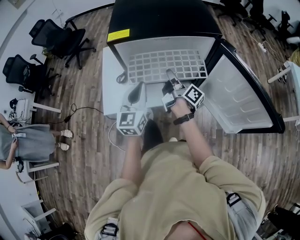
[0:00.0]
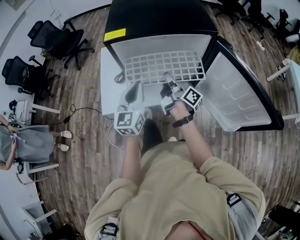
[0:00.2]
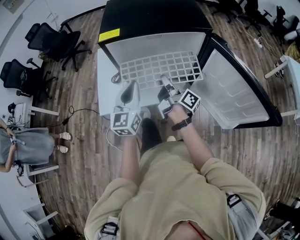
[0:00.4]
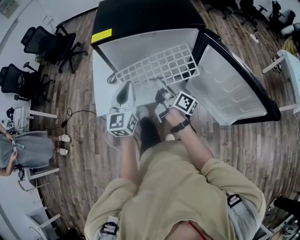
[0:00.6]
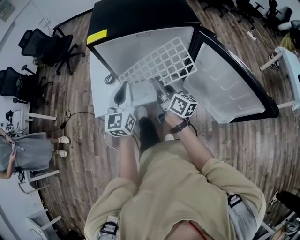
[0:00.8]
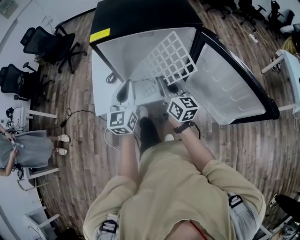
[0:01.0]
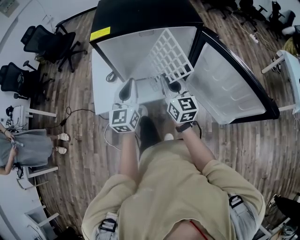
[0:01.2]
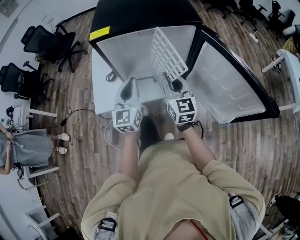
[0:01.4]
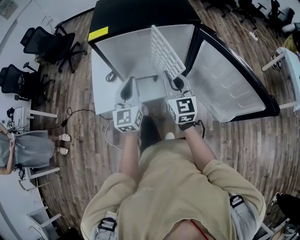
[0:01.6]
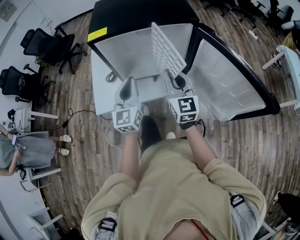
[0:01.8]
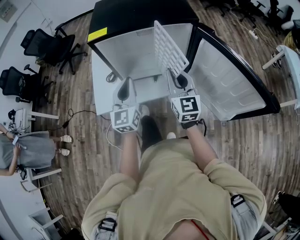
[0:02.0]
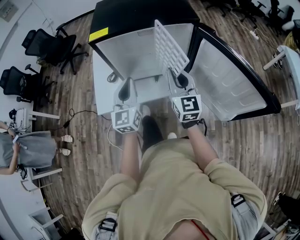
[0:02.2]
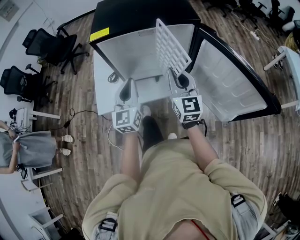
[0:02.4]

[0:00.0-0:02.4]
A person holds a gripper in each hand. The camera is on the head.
0:00.0 to 0:01.2: The right gripper shifts roughly 10 cm backward, and rotates around the line of its fingers by approximately 70 degrees, counterclockwise from behind.
0:01.2 to 0:02.4: The right gripper ends up about 5 cm from where it was.

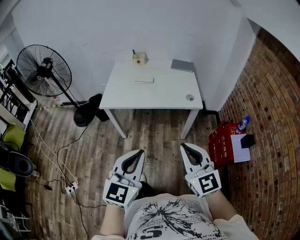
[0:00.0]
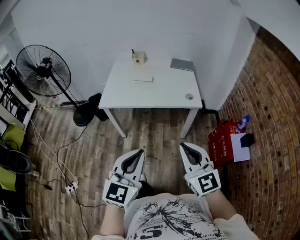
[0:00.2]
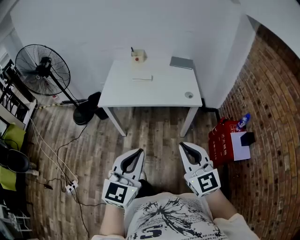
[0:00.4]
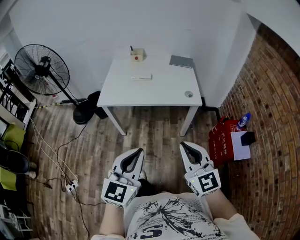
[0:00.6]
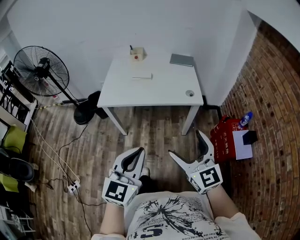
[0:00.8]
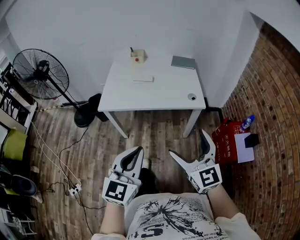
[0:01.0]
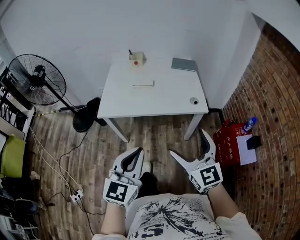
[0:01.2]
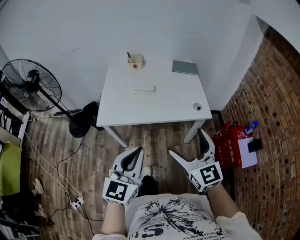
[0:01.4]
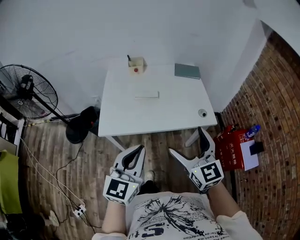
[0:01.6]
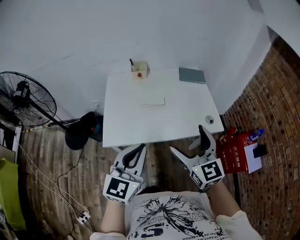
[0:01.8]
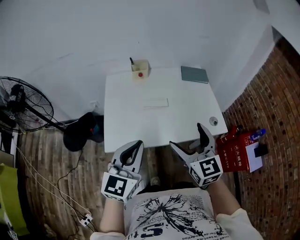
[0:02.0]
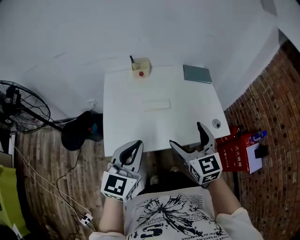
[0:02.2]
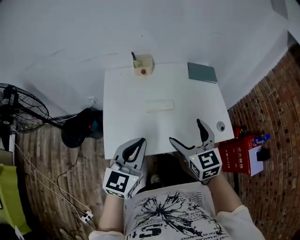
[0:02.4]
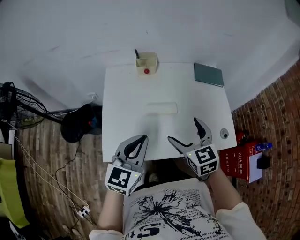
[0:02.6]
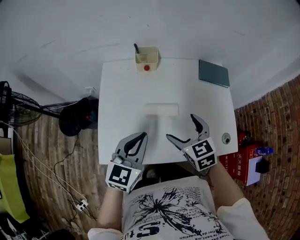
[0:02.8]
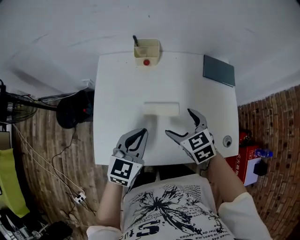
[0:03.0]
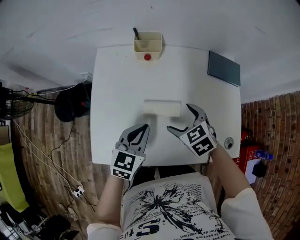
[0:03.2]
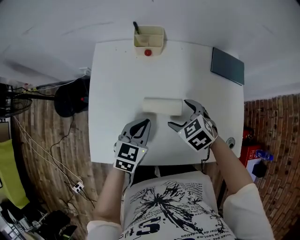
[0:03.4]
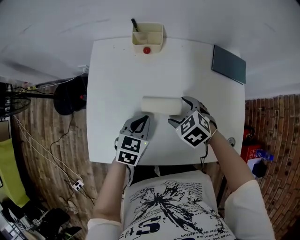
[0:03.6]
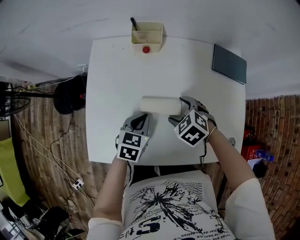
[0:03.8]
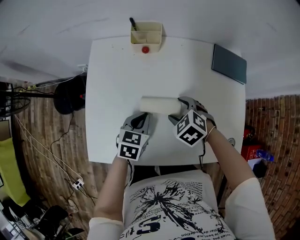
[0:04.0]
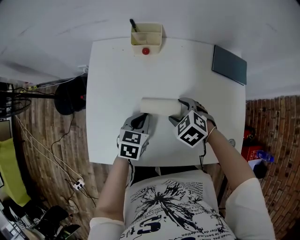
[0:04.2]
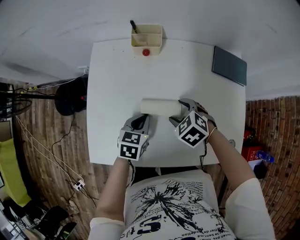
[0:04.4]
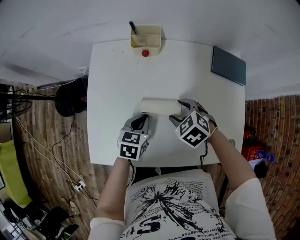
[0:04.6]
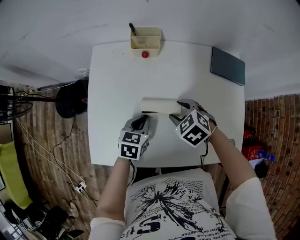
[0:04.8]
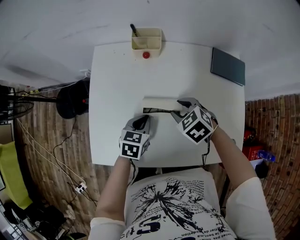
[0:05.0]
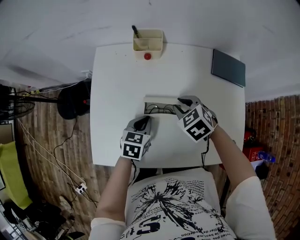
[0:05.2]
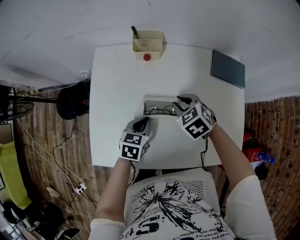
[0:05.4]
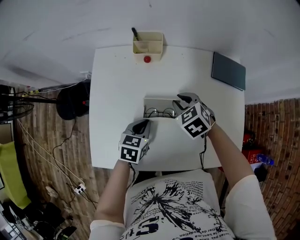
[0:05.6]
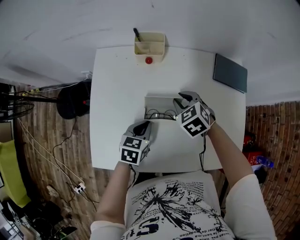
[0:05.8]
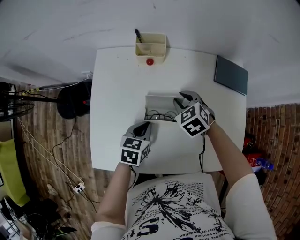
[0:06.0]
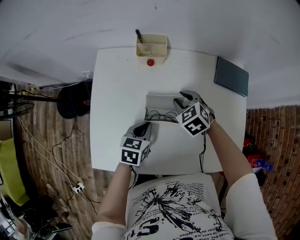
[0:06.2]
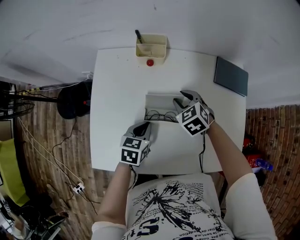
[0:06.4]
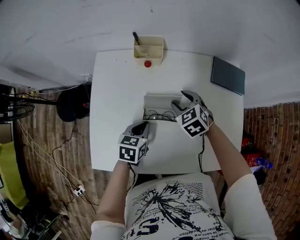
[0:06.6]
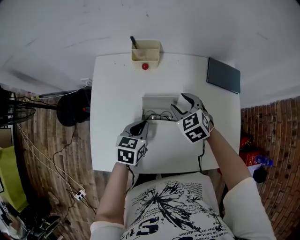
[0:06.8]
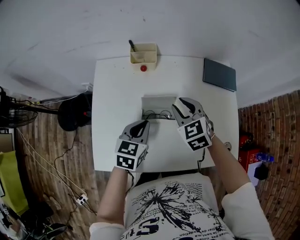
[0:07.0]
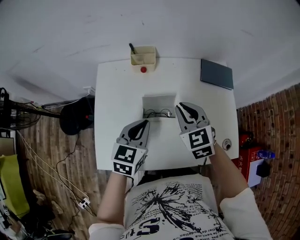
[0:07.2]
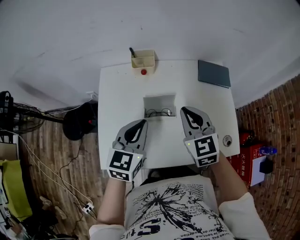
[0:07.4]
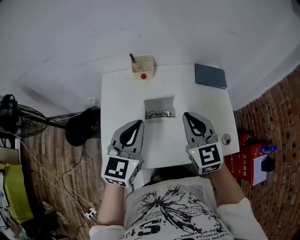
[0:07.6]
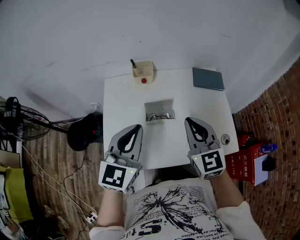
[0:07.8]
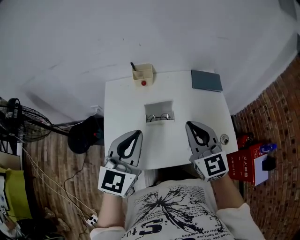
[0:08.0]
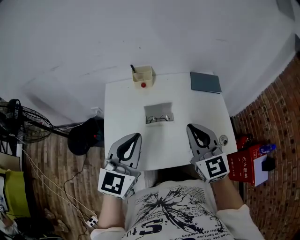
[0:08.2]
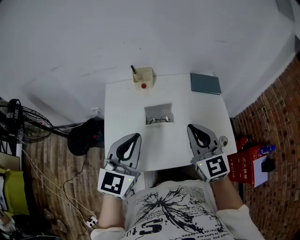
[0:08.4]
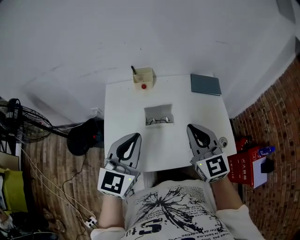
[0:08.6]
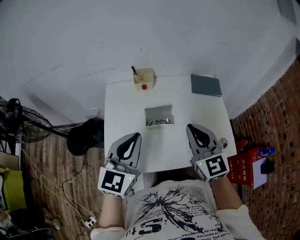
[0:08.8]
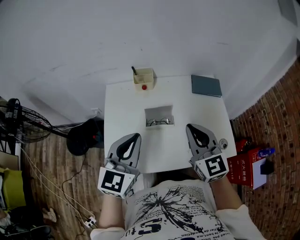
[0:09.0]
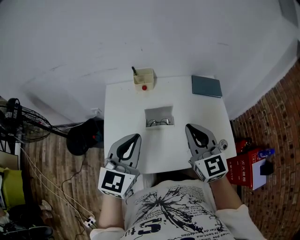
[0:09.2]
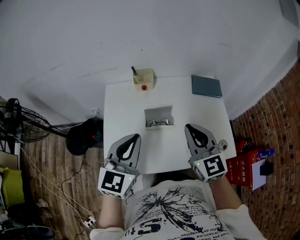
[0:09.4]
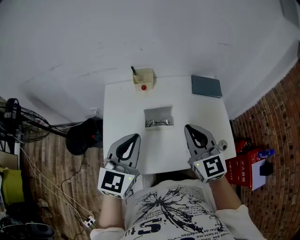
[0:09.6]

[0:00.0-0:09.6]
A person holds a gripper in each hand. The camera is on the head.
0:00.0 to 0:01.6: The left gripper moves forward and to the left, roughly 30 cm. The right gripper is displaced forward by roughly 25 cm, and opens its fingers.
0:01.6 to 0:03.2: Both grippers are carried forward, approximately 40 cm. The grippers both shift downward by roughly 25 cm. The left gripper turns by roughly 20 degrees. Meanwhile the right gripper points its fingers approximately 50 degrees further downward.
0:03.2 to 0:04.8: The right gripper changes place by roughly 5 cm, and closes its fingers, while the left gripper moves downward, about 10 cm.
0:04.8 to 0:06.4: The right gripper is displaced forward by approximately 10 cm.
0:06.4 to 0:08.0: The grippers both shift upward and backward by about 35 cm. The right gripper points its fingers roughly 40 degrees further upward; the left gripper angles its fingers upward, by about 40 degrees.
0:08.0 to 0:09.6: The grippers stay close to where they were, moving slightly.

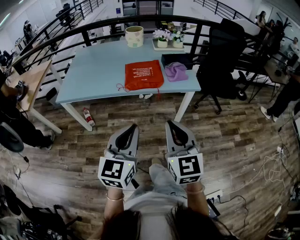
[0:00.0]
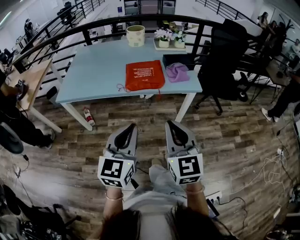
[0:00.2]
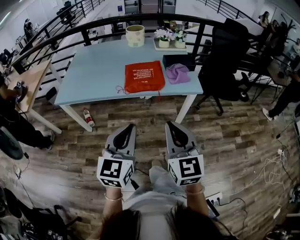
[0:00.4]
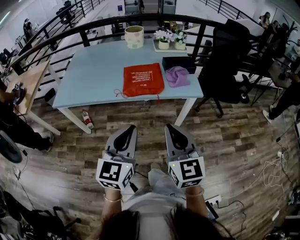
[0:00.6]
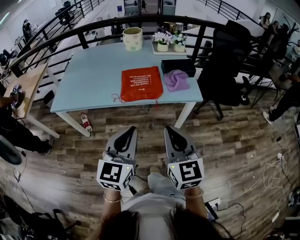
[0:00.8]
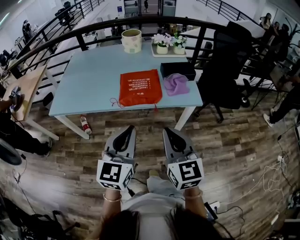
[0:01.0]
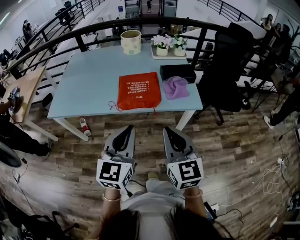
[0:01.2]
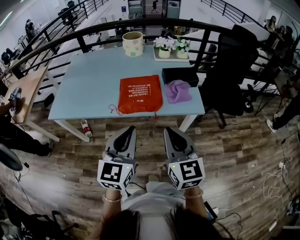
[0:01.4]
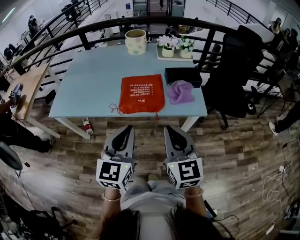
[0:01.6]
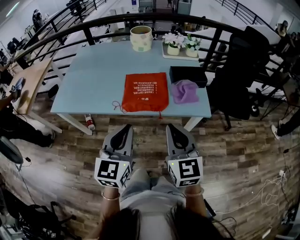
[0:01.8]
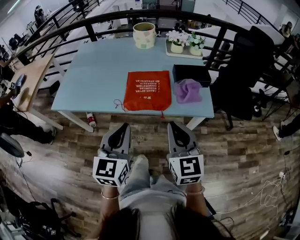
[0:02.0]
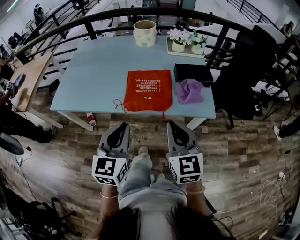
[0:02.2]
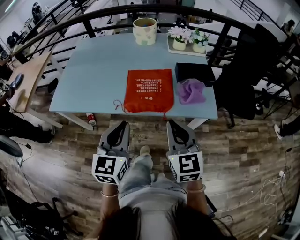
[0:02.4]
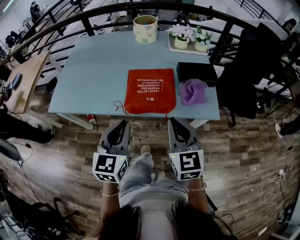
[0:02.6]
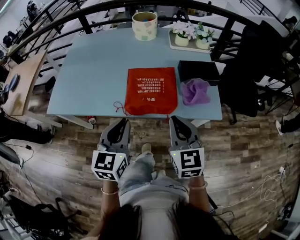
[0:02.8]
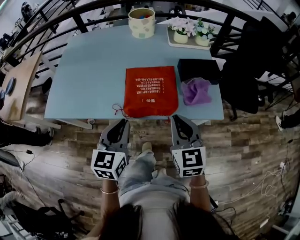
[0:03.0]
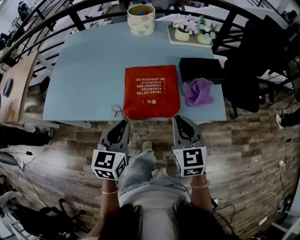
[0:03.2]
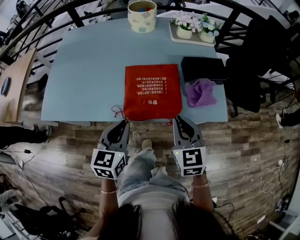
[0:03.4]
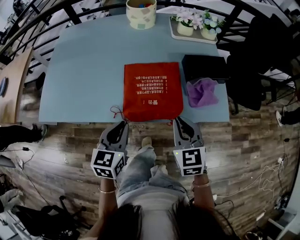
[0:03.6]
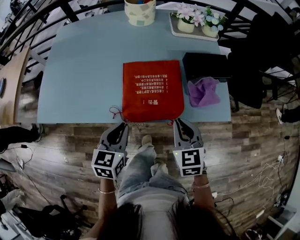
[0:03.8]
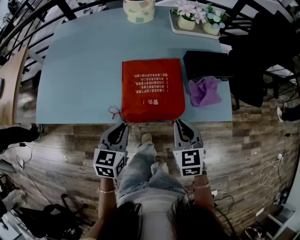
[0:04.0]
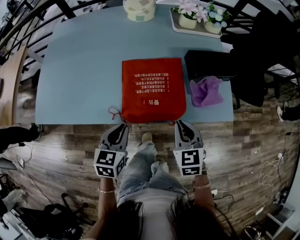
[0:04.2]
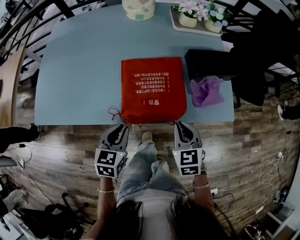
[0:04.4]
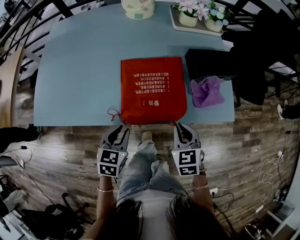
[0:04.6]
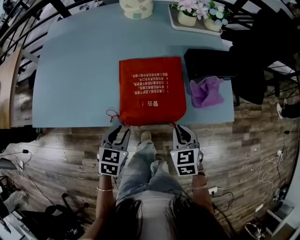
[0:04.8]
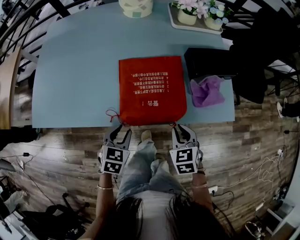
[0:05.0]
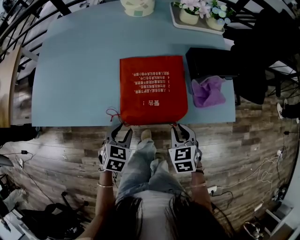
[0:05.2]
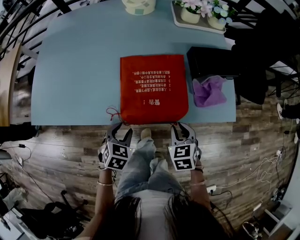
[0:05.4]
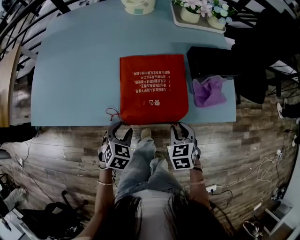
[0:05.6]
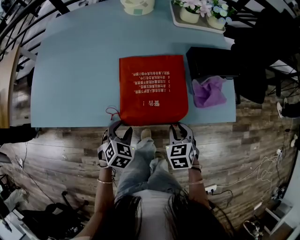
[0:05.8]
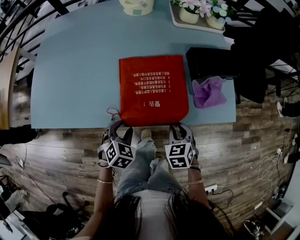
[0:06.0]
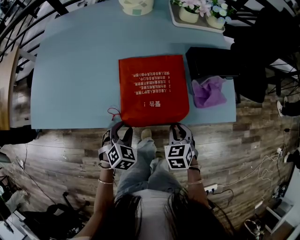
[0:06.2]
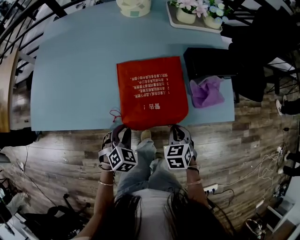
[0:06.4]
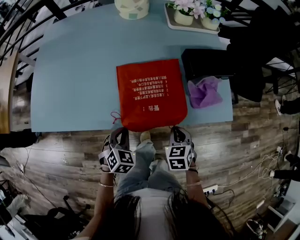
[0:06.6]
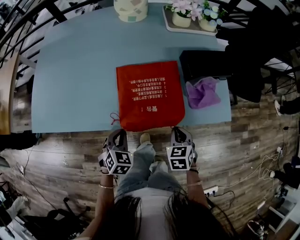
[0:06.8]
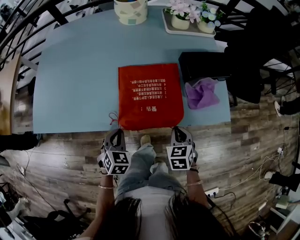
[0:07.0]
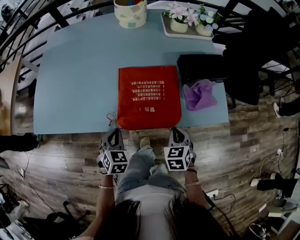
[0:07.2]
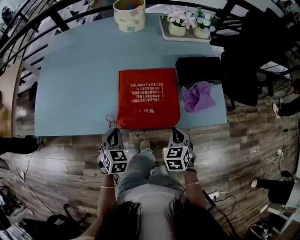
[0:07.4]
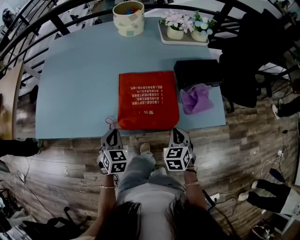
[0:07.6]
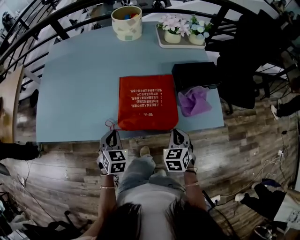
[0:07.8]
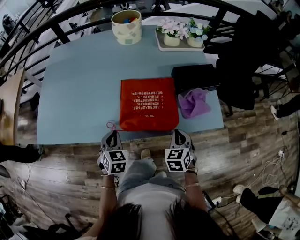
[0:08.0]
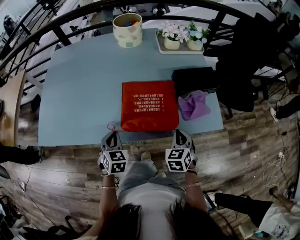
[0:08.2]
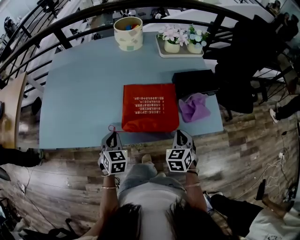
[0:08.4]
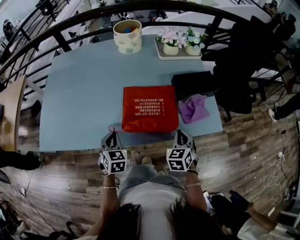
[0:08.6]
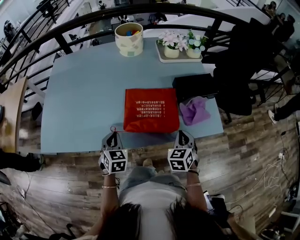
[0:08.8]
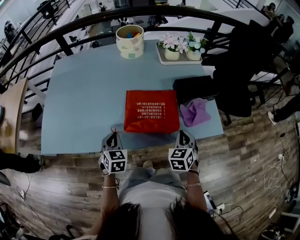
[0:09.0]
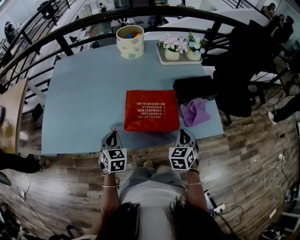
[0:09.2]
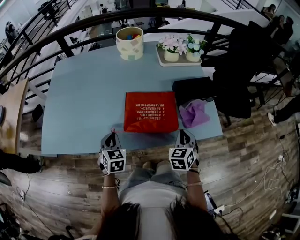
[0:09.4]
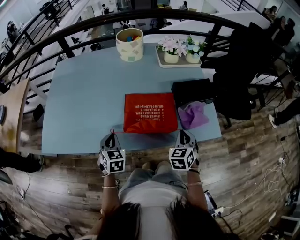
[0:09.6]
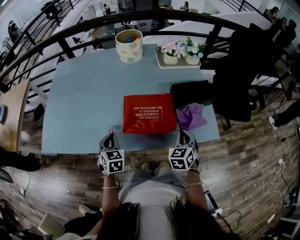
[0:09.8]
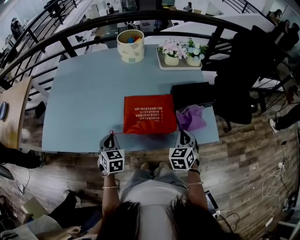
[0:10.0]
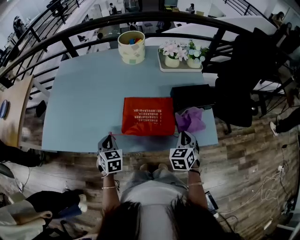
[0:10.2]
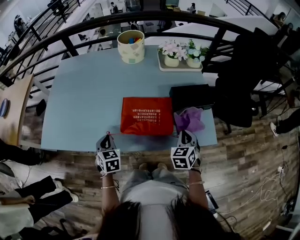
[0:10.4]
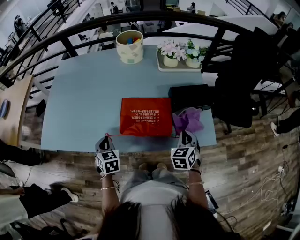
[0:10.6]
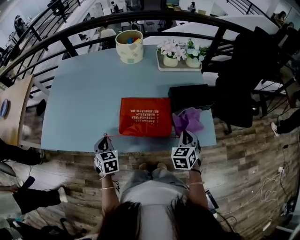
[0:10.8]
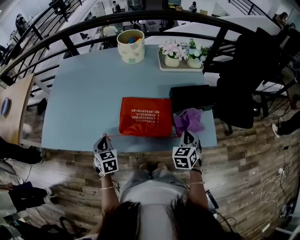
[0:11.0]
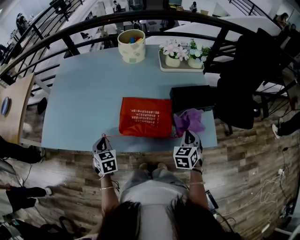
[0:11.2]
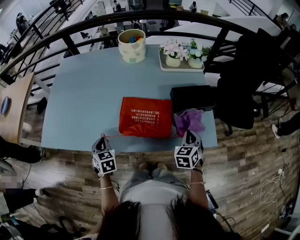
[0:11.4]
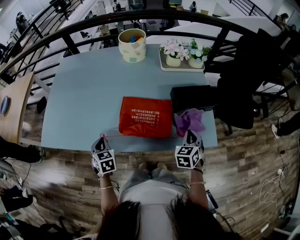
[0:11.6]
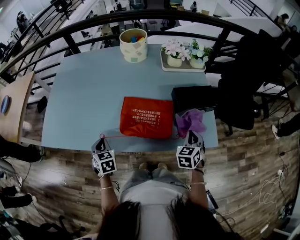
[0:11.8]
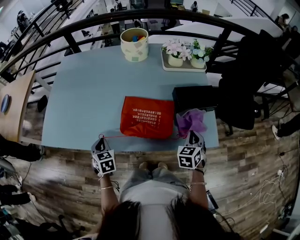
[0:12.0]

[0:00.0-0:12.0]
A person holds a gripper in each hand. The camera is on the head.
0:00.0 to 0:01.6: Both grippers travel together forward, approximately 20 cm.
0:01.6 to 0:03.0: The right gripper goes approximately 20 cm forward and downward. The left gripper moves forward, downward and to the left, roughly 20 cm.
0:03.0 to 0:04.4: Both grippers move downward, approximately 15 cm. The left gripper swivels approximately 20 degrees. Meanwhile the right gripper turns by approximately 20 degrees.
0:04.4 to 0:06.0: Both grippers move downward, about 10 cm. The left gripper rotates roughly 30 degrees, and opens up.
0:06.0 to 0:07.6: The left gripper shifts approximately 5 cm upward, rotates roughly 20 degrees, and closes. Meanwhile the right gripper changes place by roughly 5 cm.
0:07.6 to 0:09.0: The left gripper ends up approximately 5 cm from where it was, while the right gripper ends up about 5 cm from where it was.
0:09.0 to 0:10.4: The right gripper heads to the right, covering some 5 cm.
0:10.4 to 0:12.0: There are only small adjustments of the grippers.
